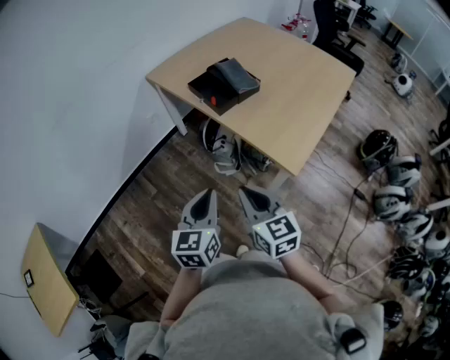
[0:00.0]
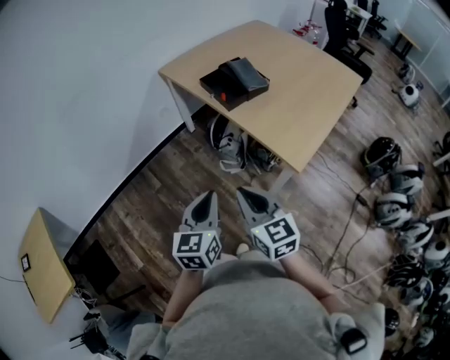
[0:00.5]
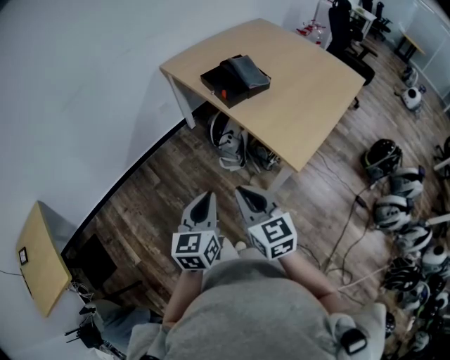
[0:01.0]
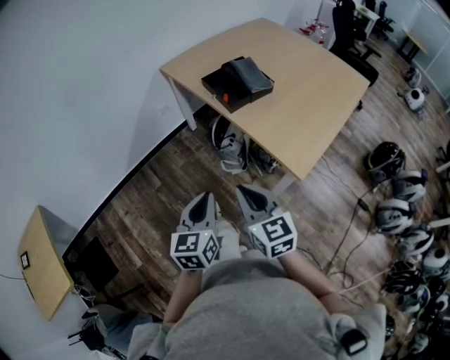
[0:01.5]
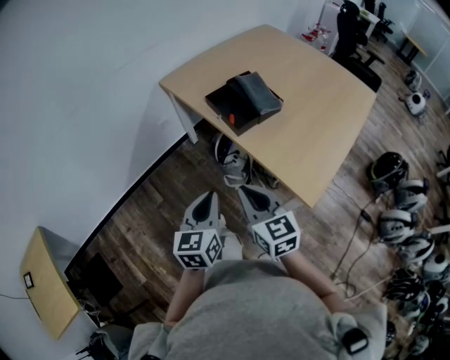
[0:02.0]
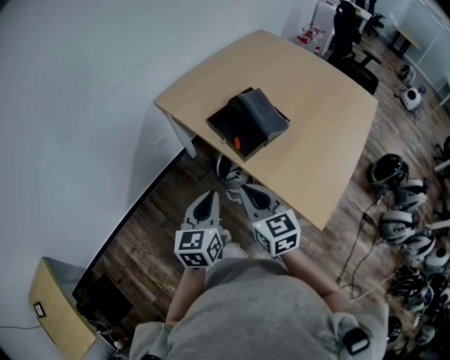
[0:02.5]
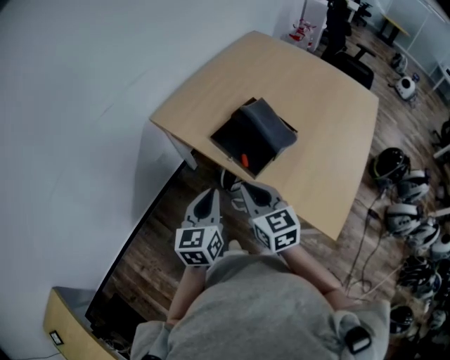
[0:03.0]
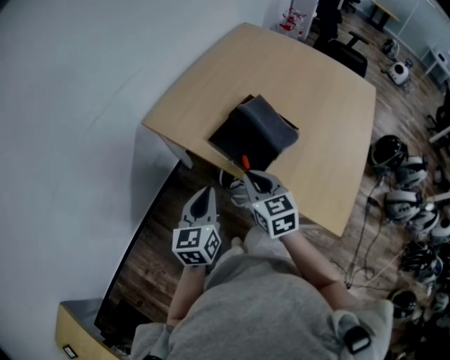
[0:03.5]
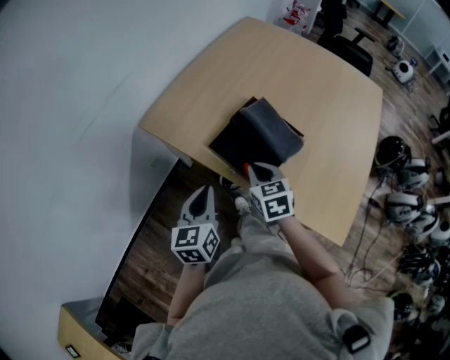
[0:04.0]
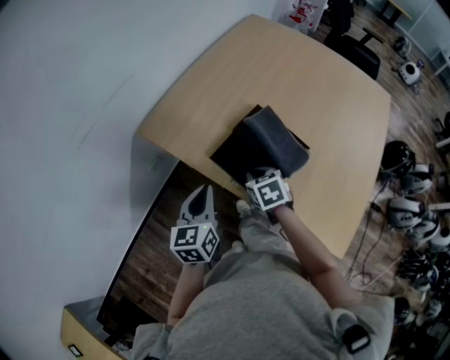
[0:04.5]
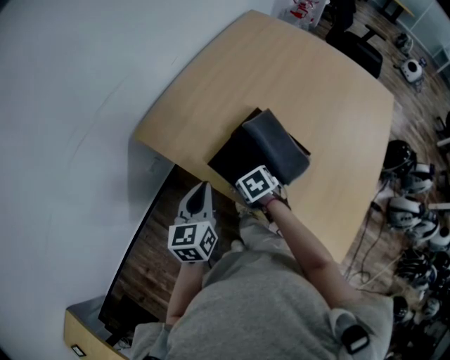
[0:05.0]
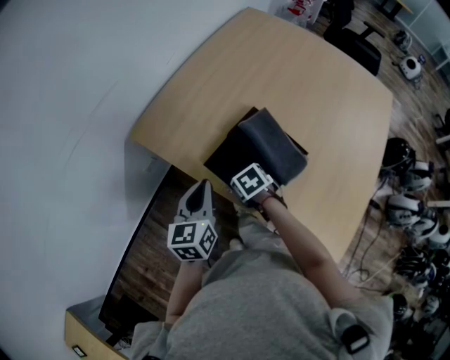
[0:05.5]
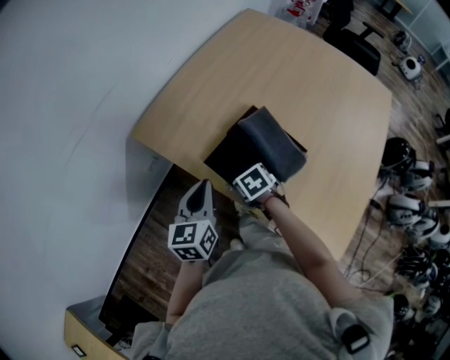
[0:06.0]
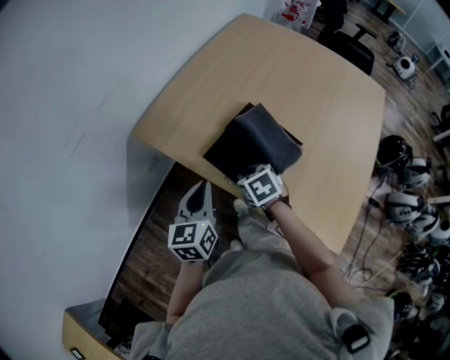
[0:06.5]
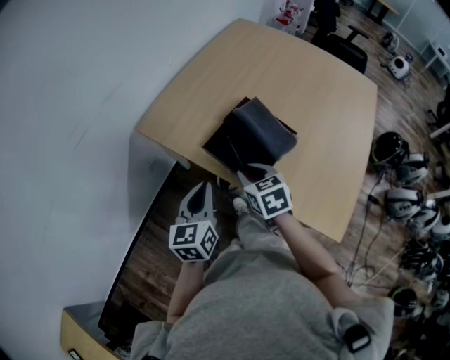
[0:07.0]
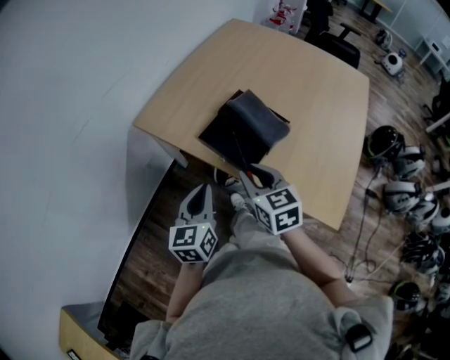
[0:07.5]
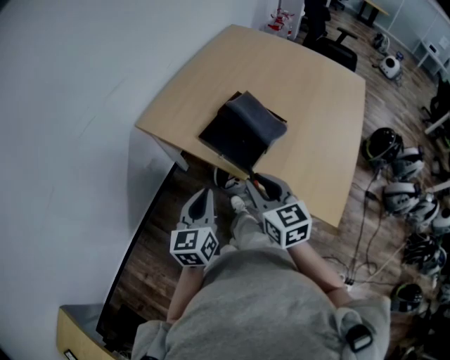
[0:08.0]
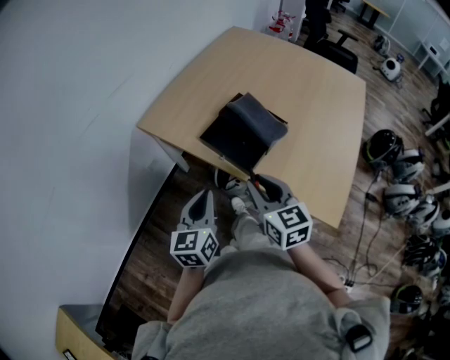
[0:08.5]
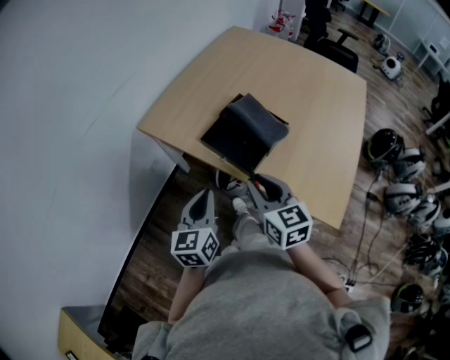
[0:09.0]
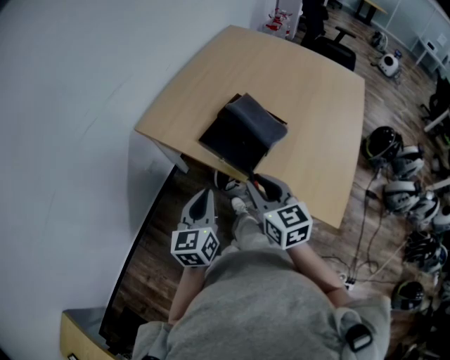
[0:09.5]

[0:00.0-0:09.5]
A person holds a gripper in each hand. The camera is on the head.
0:00.0 to 0:02.0: Both grippers move forward, approximately 10 cm.
0:02.0 to 0:04.0: Both grippers move forward, approximately 30 cm. The right gripper swivels roughly 30 degrees.
0:04.0 to 0:05.5: The left gripper travels forward by roughly 10 cm, while the right gripper shifts some 10 cm downward, tilts its fingers some 30 degrees downward, and opens.
0:05.5 to 0:07.5: The right gripper shifts about 20 cm upward and backward, and points its fingers some 40 degrees further upward, while the left gripper is displaced backward by approximately 15 cm.
0:07.5 to 0:09.5: The grippers make only small movements.

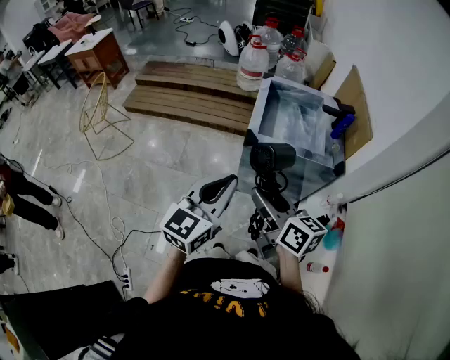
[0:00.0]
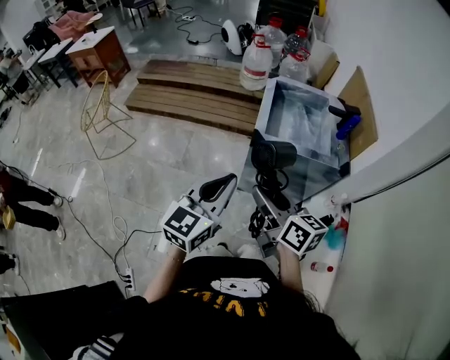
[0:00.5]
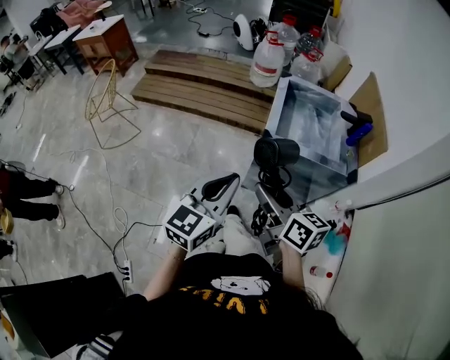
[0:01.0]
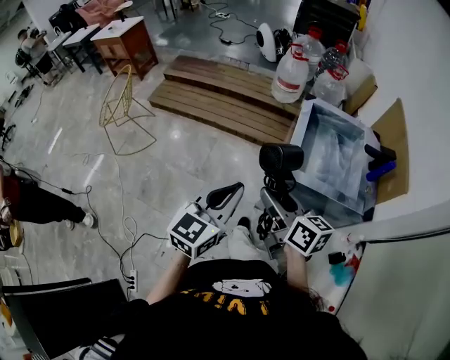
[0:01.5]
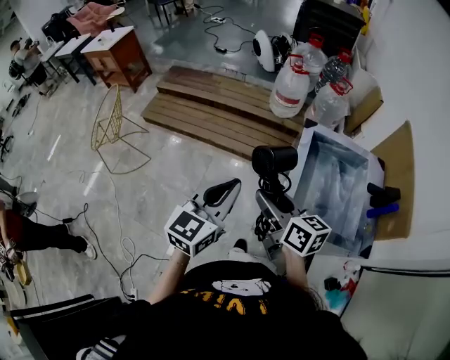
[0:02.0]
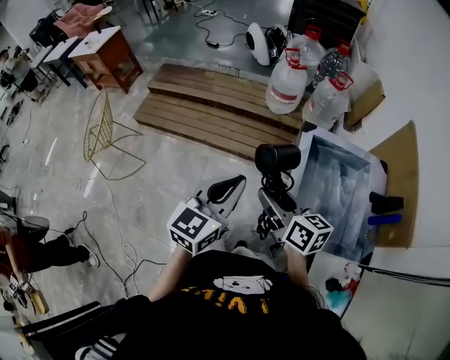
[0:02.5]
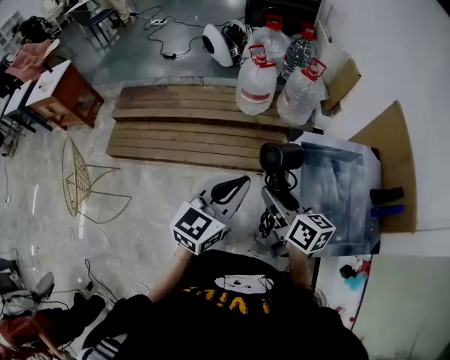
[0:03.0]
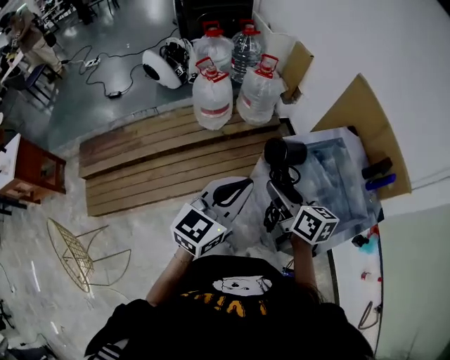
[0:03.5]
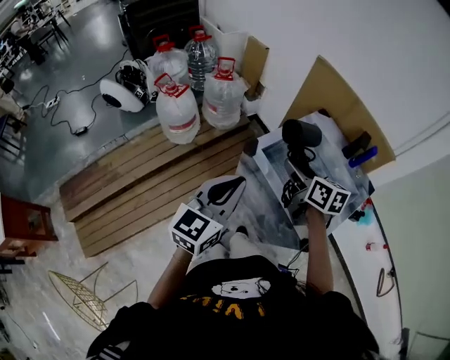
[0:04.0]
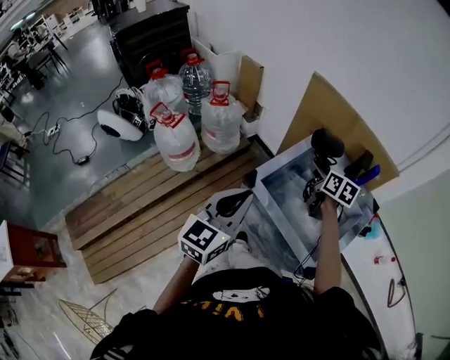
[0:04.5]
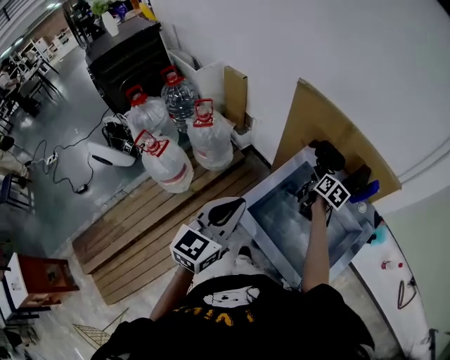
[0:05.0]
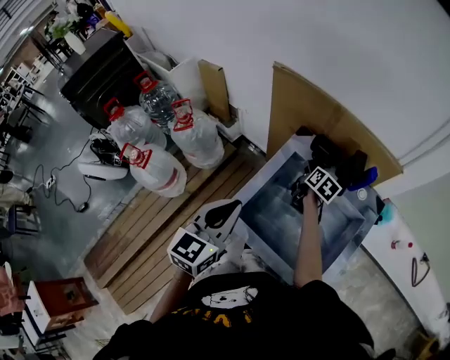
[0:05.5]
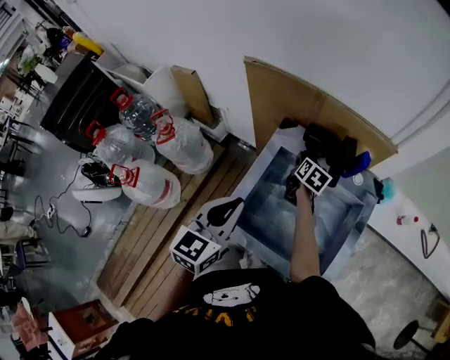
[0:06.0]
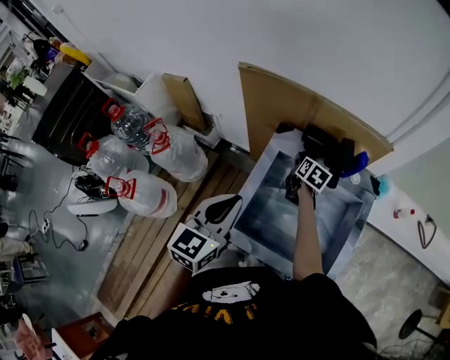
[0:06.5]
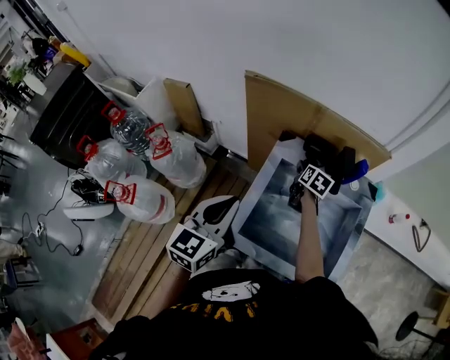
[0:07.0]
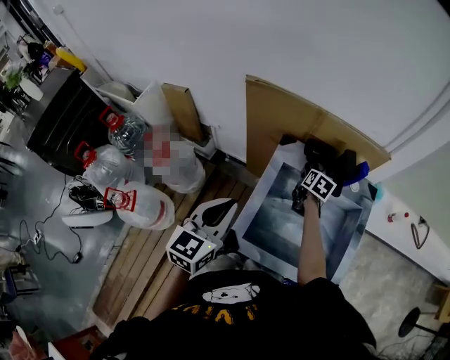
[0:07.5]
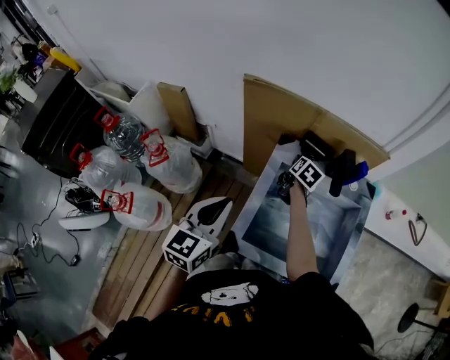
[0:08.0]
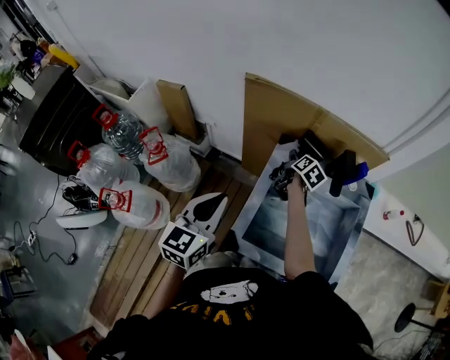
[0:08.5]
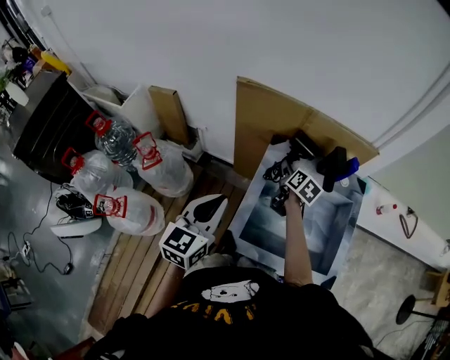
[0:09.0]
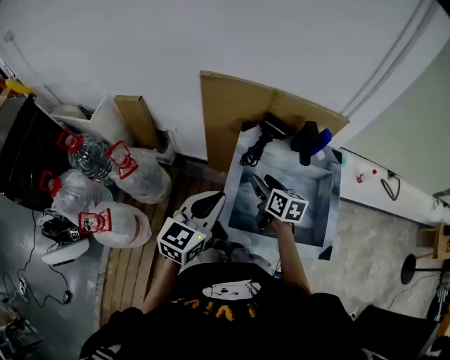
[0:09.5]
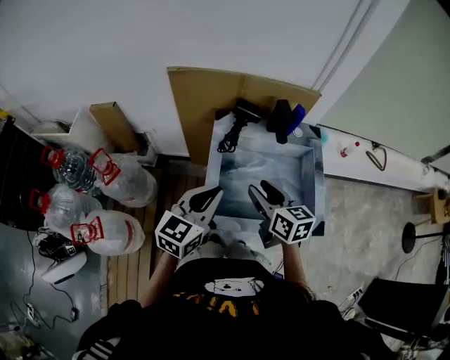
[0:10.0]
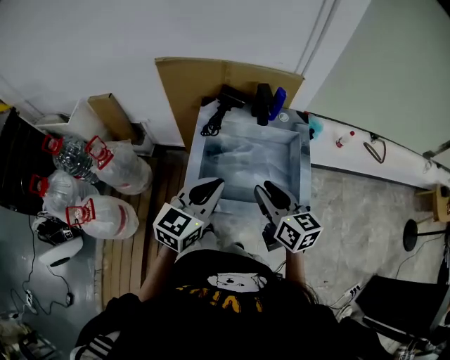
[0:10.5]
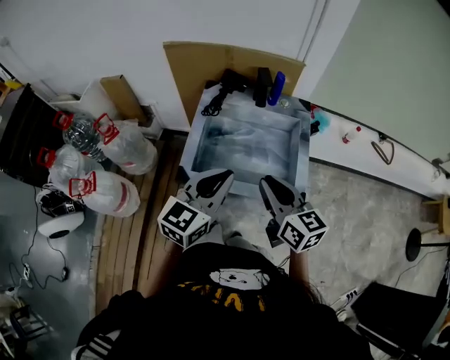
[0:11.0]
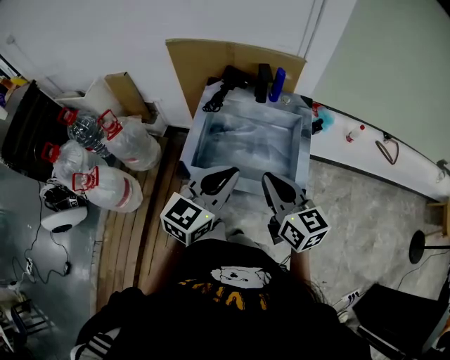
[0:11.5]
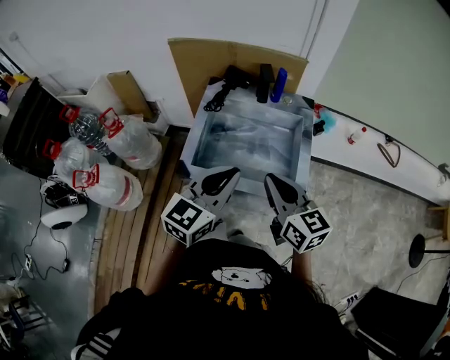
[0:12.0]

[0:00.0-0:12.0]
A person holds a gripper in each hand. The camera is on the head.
0:00.0 to 0:02.0: The two grippers go about 30 cm forward.
0:02.0 to 0:04.0: The left gripper moves approximately 35 cm, and changes its angle by approximately 50 degrees. The right gripper shifts by some 30 cm, and rotates about 60 degrees.
0:04.0 to 0:06.0: The left gripper changes place by some 30 cm, and changes its angle by some 30 degrees. The right gripper shifts by about 40 cm, and rotates roughly 50 degrees.
0:06.0 to 0:08.0: The left gripper is displaced to the left by roughly 10 cm.
0:08.0 to 0:10.0: The right gripper goes about 30 cm backward and upward, and turns by approximately 30 degrees; the left gripper goes about 10 cm to the right, and turns by roughly 30 degrees.
0:10.0 to 0:12.0: The left gripper moves to the right and backward, about 20 cm; the right gripper is displaced to the right, backward and upward by some 20 cm, and closes.

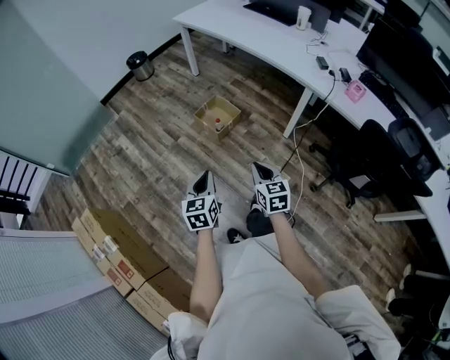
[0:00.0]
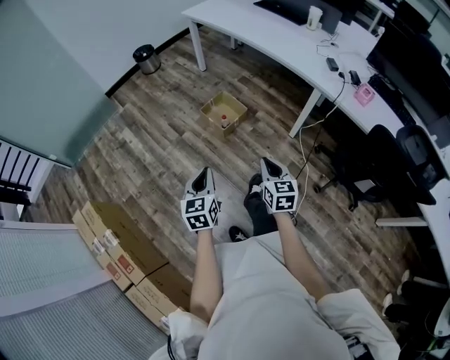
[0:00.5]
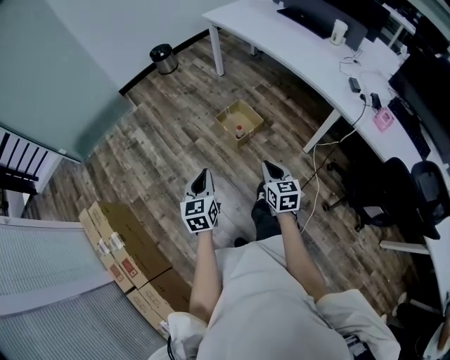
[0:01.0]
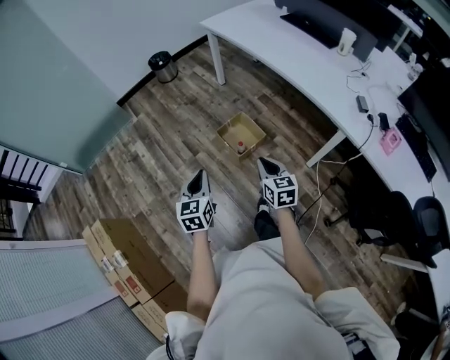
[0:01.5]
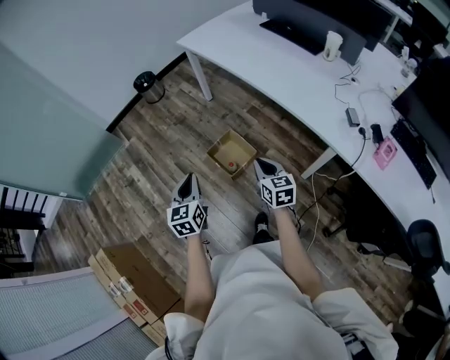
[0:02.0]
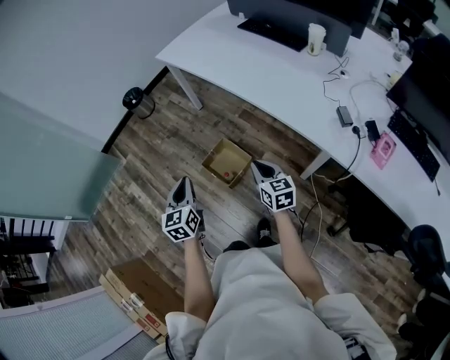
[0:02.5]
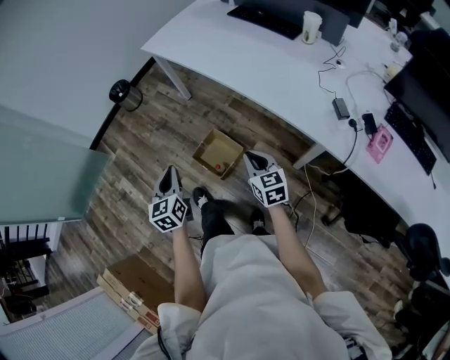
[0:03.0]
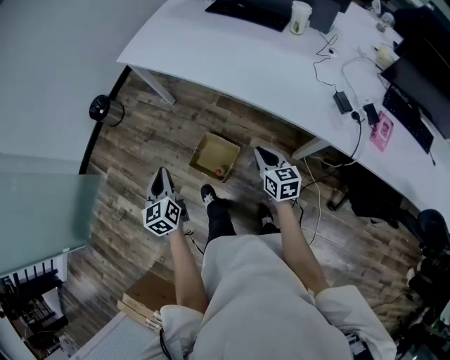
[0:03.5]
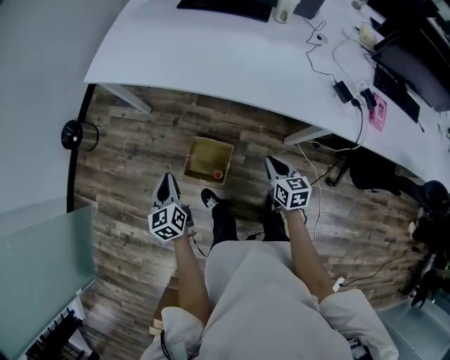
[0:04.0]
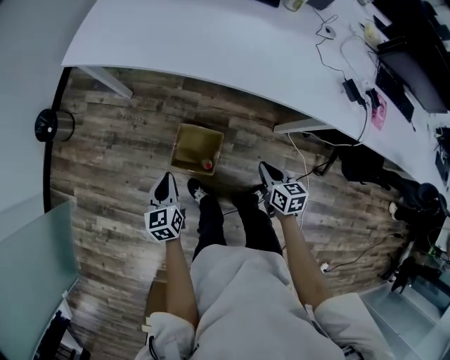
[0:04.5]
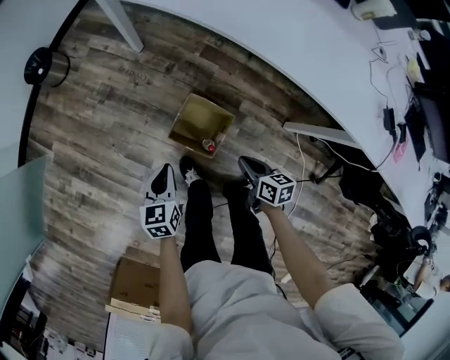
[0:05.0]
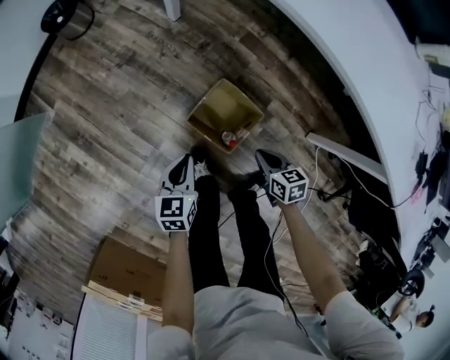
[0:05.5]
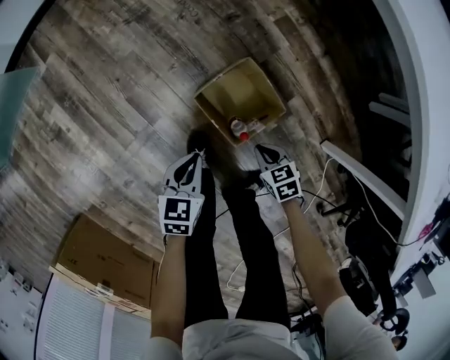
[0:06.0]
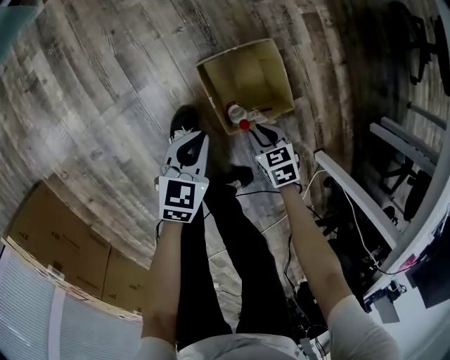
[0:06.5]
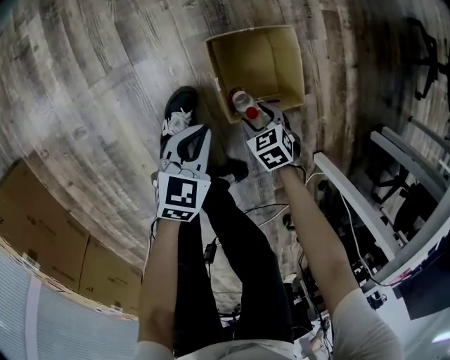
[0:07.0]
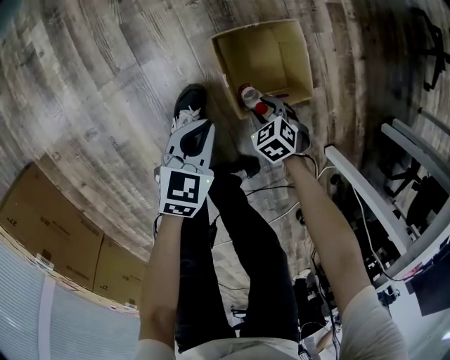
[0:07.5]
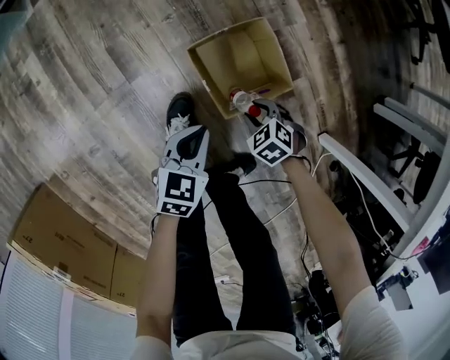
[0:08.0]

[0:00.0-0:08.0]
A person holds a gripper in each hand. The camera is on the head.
0:00.0 to 0:02.0: The two grippers go some 40 cm forward.
0:02.0 to 0:04.0: The right gripper ends up approximately 20 cm from where it was, and turns by approximately 40 degrees. Meanwhile the left gripper ends up approximately 40 cm from where it was, and swivels approximately 20 degrees.
0:04.0 to 0:06.0: Both grippers move downward, some 40 cm. The right gripper changes its angle by some 60 degrees.
0:06.0 to 0:08.0: The grippers both shift downward by roughly 10 cm. The right gripper rotates roughly 40 degrees, and opens up.
